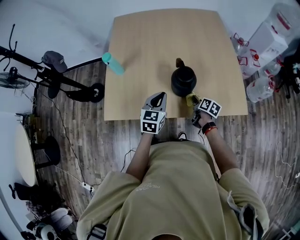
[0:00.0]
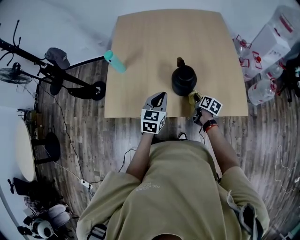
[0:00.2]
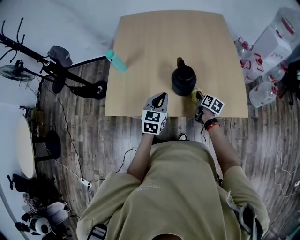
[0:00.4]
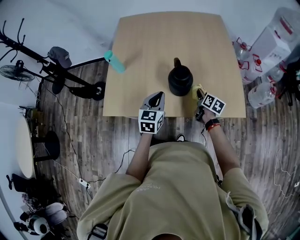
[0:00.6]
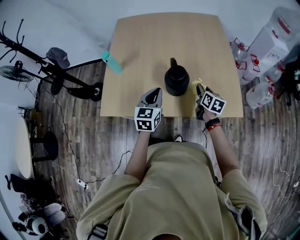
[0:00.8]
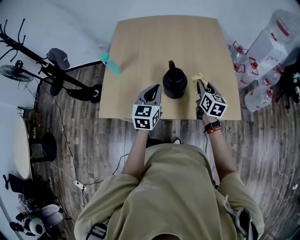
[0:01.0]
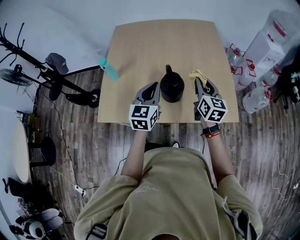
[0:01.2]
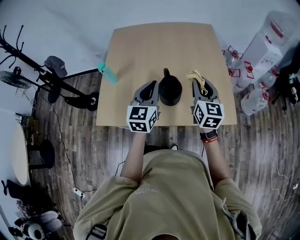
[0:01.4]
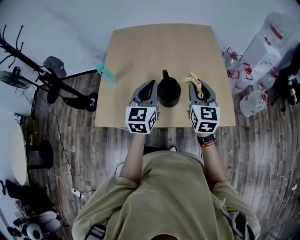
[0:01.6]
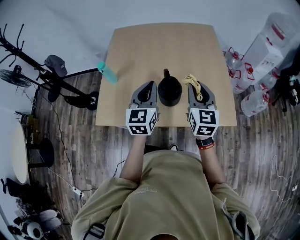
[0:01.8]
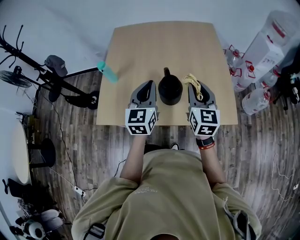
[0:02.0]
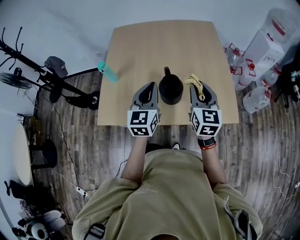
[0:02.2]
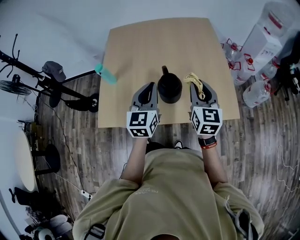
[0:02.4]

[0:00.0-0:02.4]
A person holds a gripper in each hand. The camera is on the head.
0:00.0 to 0:01.2: The left gripper goes roughly 10 cm upward; the right gripper moves upward, about 25 cm, and swivels roughly 50 degrees.
0:01.2 to 0:02.4: The right gripper ends up approximately 5 cm from where it was.

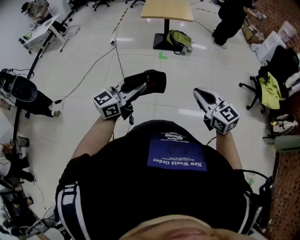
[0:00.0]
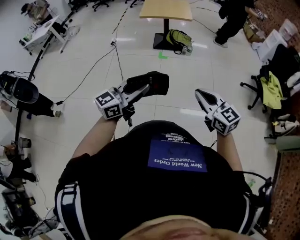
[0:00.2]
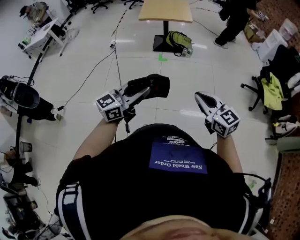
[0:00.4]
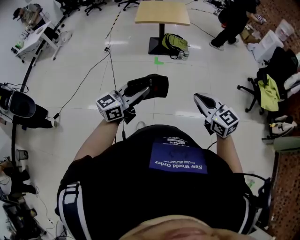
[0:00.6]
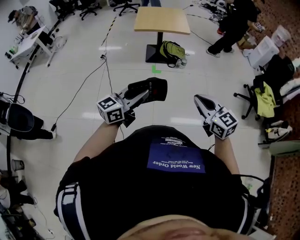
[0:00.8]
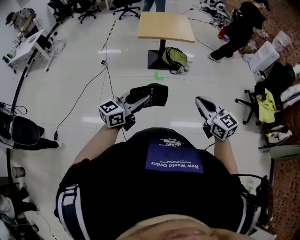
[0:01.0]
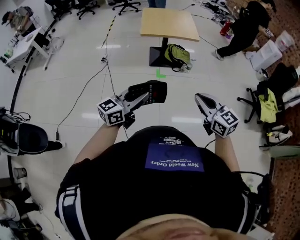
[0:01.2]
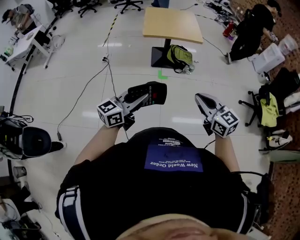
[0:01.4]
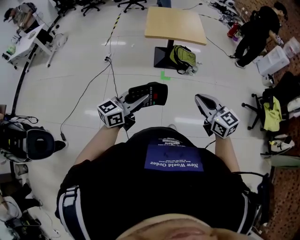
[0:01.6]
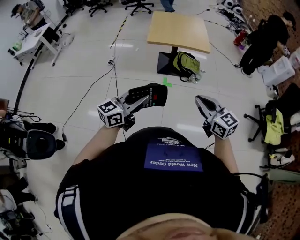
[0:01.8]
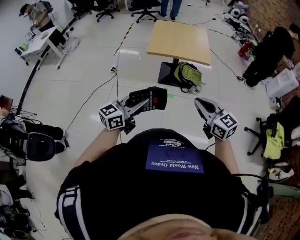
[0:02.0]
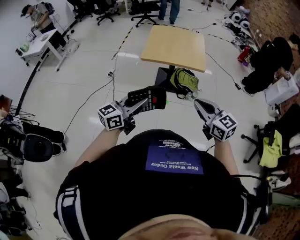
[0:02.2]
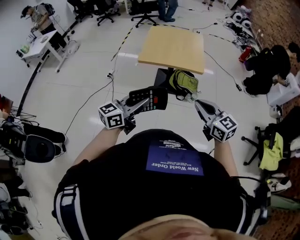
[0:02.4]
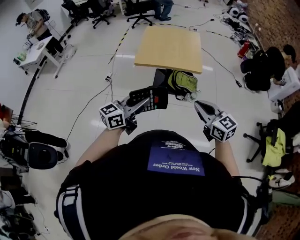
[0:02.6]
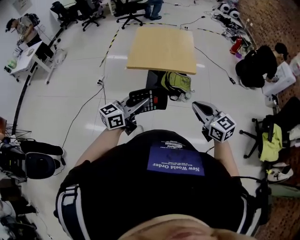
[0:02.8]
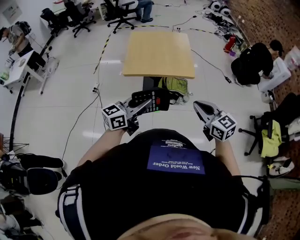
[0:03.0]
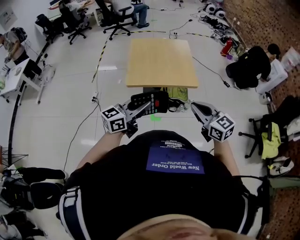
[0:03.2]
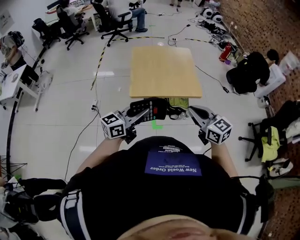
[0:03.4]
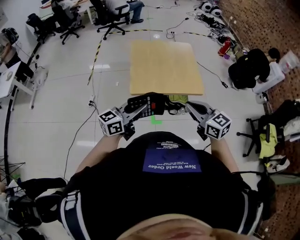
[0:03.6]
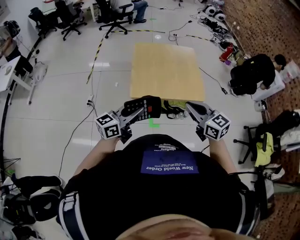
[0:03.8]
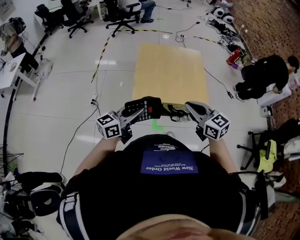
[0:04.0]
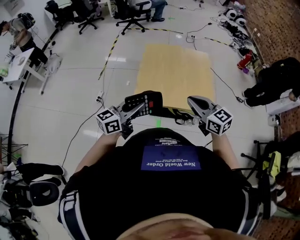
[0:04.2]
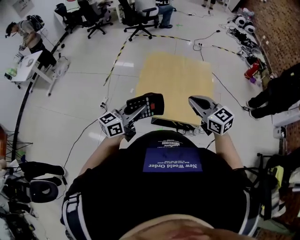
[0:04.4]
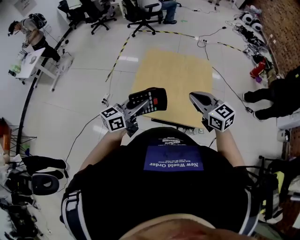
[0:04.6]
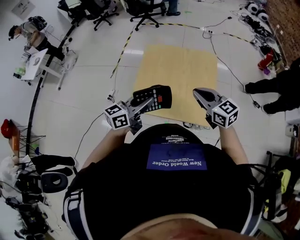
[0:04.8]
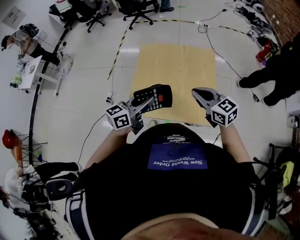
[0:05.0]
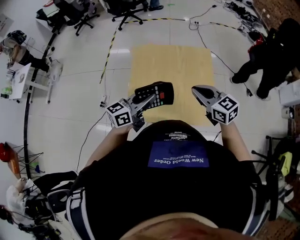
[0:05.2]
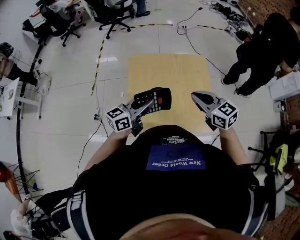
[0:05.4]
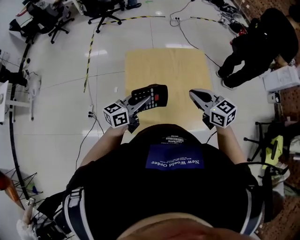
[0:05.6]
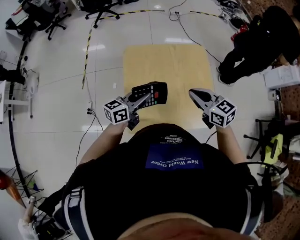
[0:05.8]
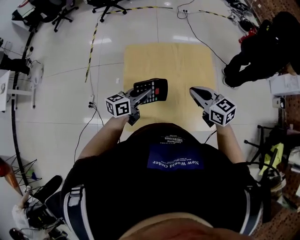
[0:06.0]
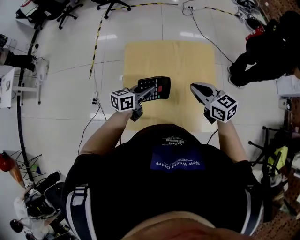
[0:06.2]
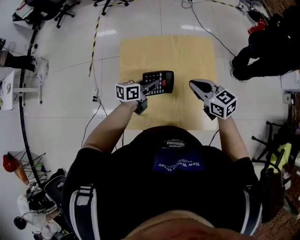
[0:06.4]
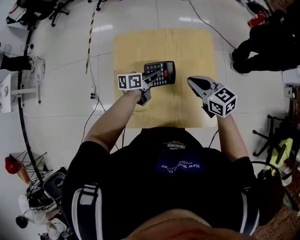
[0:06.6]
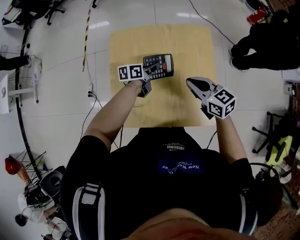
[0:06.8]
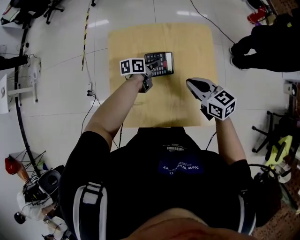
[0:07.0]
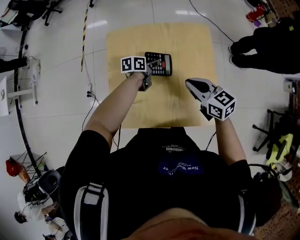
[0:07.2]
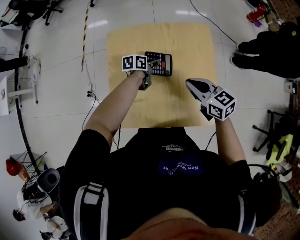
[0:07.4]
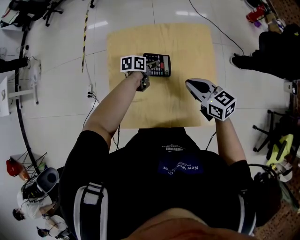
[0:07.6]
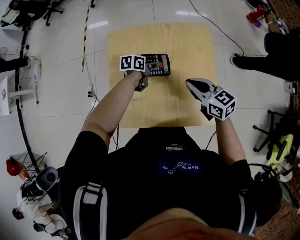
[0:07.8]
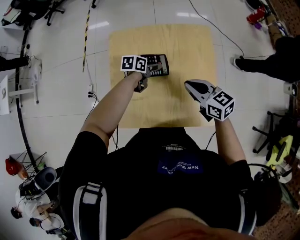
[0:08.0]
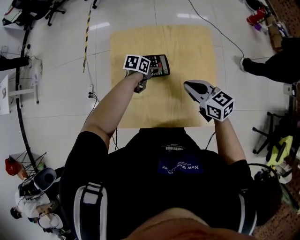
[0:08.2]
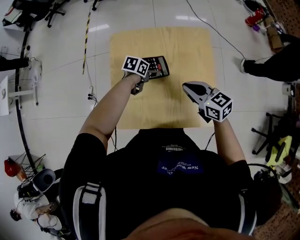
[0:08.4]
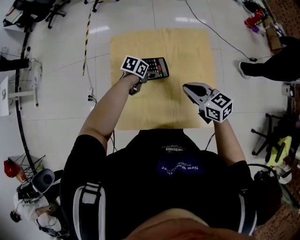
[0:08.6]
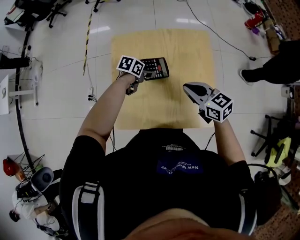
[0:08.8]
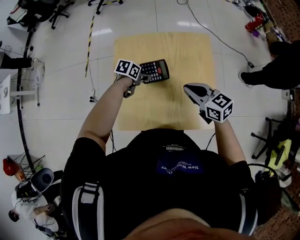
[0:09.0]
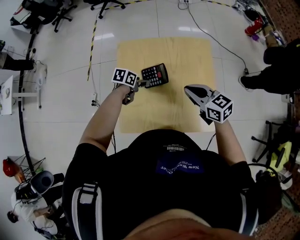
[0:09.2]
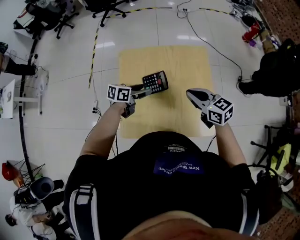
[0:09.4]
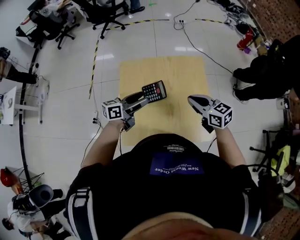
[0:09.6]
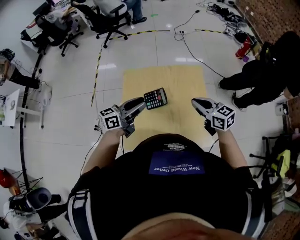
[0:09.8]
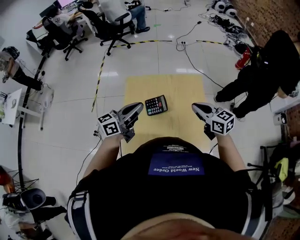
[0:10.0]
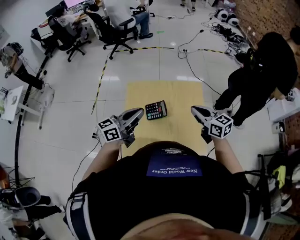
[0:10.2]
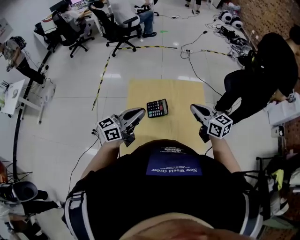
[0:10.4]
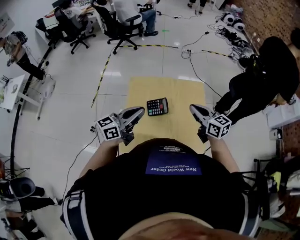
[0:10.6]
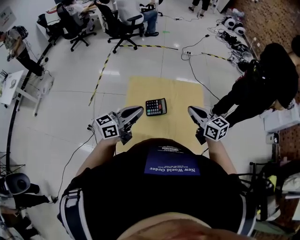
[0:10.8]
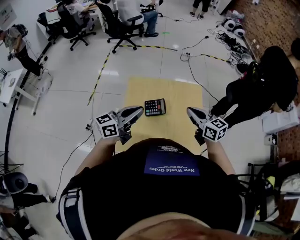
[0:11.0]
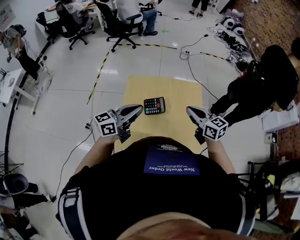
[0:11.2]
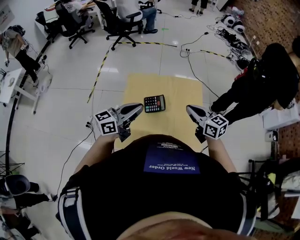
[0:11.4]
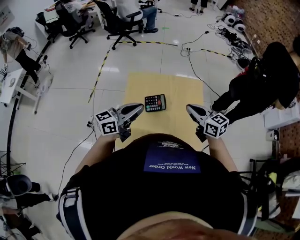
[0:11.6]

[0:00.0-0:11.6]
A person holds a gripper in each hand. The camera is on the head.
0:00.0 to 0:01.4: The two grippers travel together, forward and to the left, about 40 cm.
0:01.4 to 0:02.8: Both grippers move forward and to the right, approximately 35 cm.
0:02.8 to 0:04.4: Both grippers are carried forward, approximately 40 cm.
0:04.4 to 0:05.8: Both grippers travel together forward and downward, about 25 cm. The left gripper changes its angle by approximately 20 degrees.
0:05.8 to 0:07.2: The right gripper shifts roughly 15 cm downward, to the right and forward. Meanwhile the left gripper moves downward, forward and to the right, approximately 30 cm, and angles its fingers downward, by about 30 degrees.
0:07.2 to 0:08.8: The left gripper shifts by approximately 5 cm, swivels roughly 30 degrees, and opens its fingers.
0:08.8 to 0:10.2: The right gripper shifts approximately 10 cm upward. Meanwhile the left gripper moves upward, some 30 cm, points its fingers some 60 degrees further upward, and closes up.
0:10.2 to 0:11.6: The grippers stay close to where they were, moving slightly.

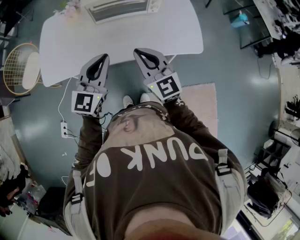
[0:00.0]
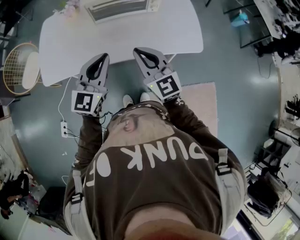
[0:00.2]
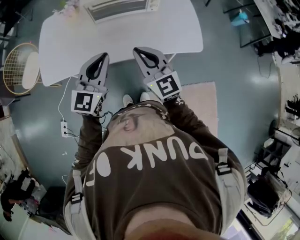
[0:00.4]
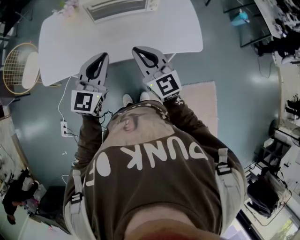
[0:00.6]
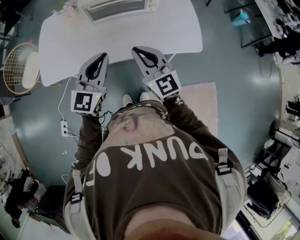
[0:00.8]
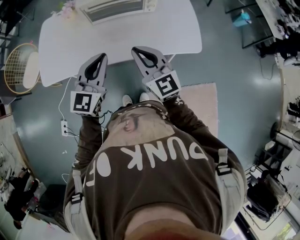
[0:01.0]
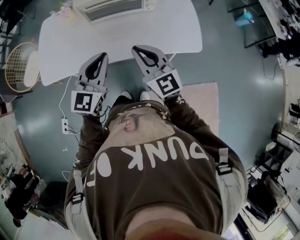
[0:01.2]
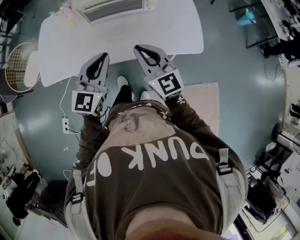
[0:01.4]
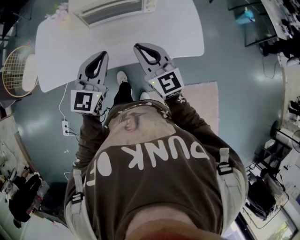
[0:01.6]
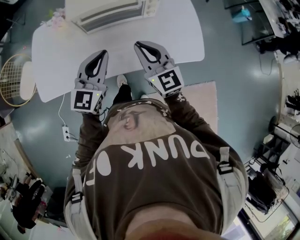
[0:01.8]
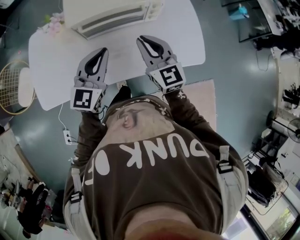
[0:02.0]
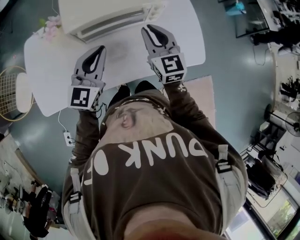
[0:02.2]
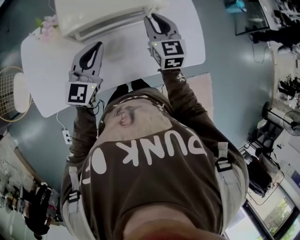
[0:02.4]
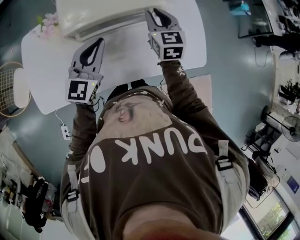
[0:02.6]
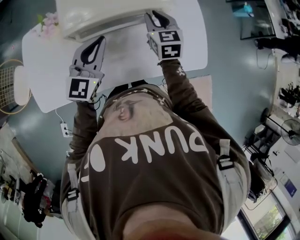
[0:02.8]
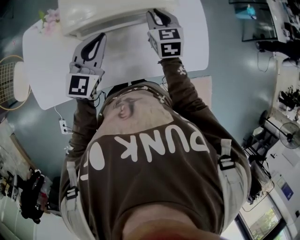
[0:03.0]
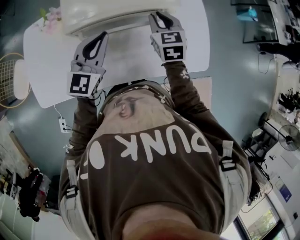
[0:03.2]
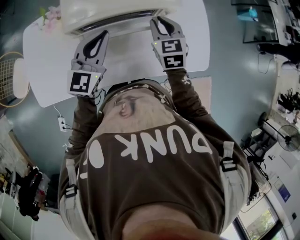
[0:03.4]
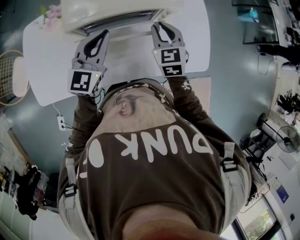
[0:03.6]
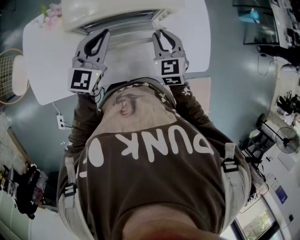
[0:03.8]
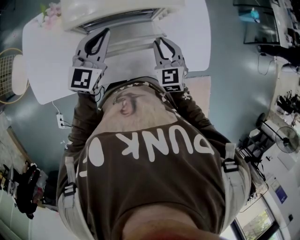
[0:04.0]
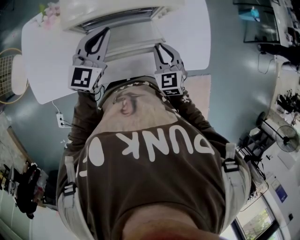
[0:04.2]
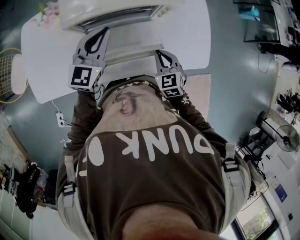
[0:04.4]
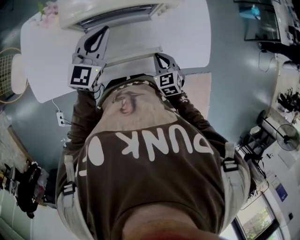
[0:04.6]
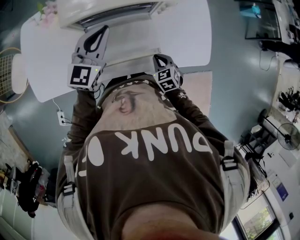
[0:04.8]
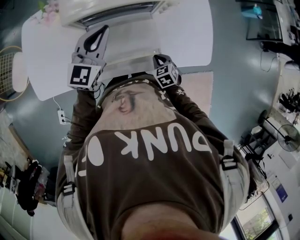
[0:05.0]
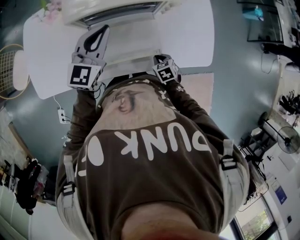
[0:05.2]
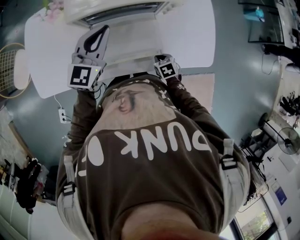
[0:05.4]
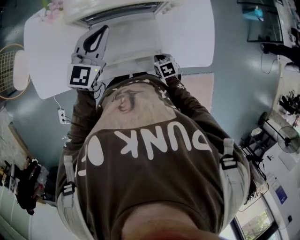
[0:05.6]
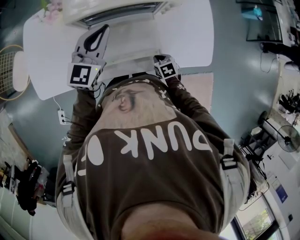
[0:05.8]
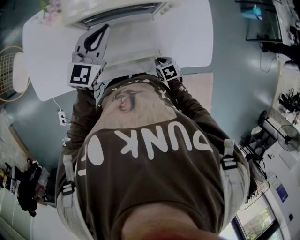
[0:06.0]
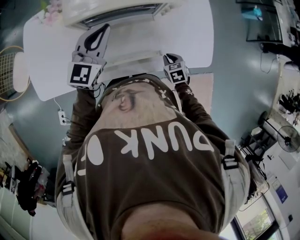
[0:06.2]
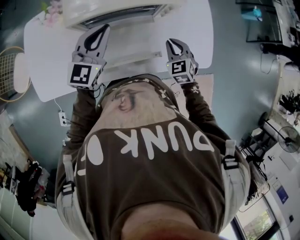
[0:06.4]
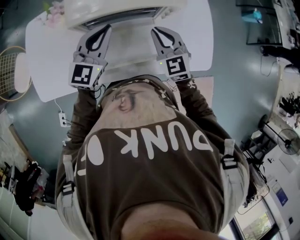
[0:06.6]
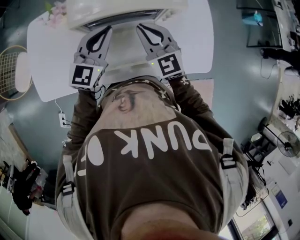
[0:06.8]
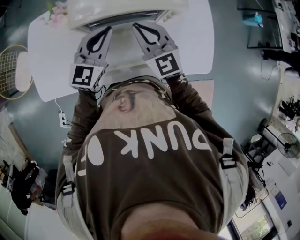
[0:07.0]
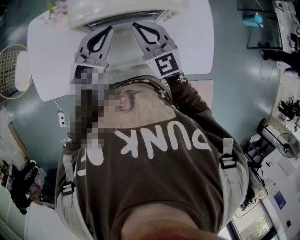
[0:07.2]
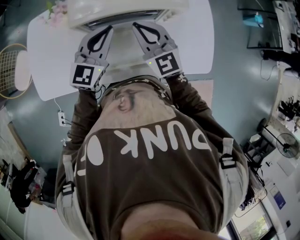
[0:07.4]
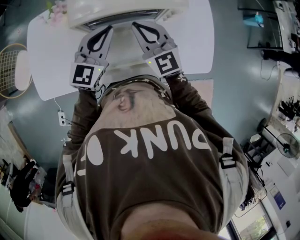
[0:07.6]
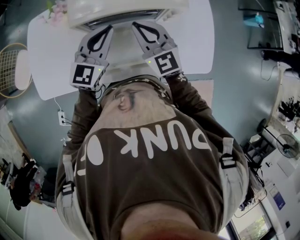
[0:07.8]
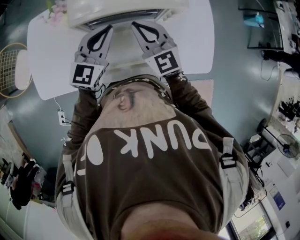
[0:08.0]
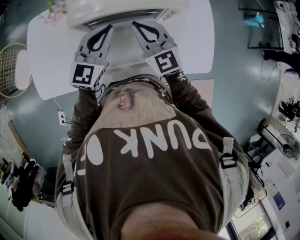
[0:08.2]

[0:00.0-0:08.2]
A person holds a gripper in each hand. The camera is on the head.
0:00.0 to 0:01.6: Both grippers travel together forward, approximately 5 cm.
0:01.6 to 0:03.2: Both grippers move forward, roughly 25 cm. The right gripper tips its fingers downward by roughly 30 degrees.
0:03.2 to 0:05.0: The right gripper shifts some 30 cm downward and backward, and turns by approximately 30 degrees.
0:05.0 to 0:06.6: The right gripper shifts about 25 cm upward and forward, and tips its fingers upward by roughly 40 degrees.
0:06.6 to 0:08.2: The right gripper is displaced to the left and upward by about 10 cm.

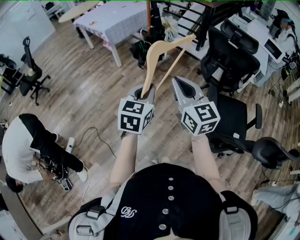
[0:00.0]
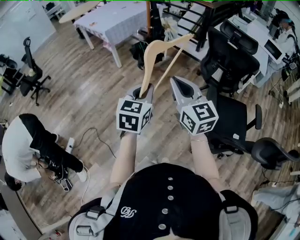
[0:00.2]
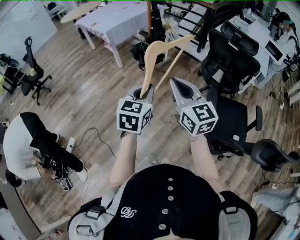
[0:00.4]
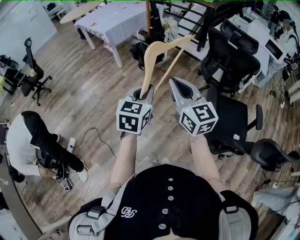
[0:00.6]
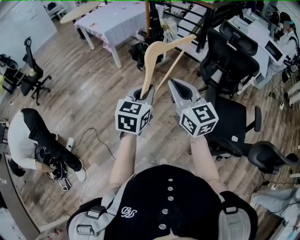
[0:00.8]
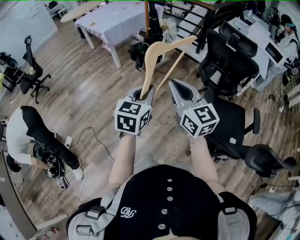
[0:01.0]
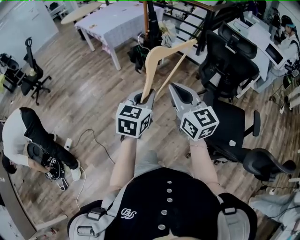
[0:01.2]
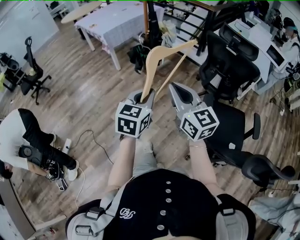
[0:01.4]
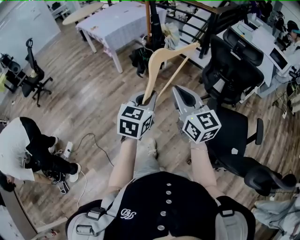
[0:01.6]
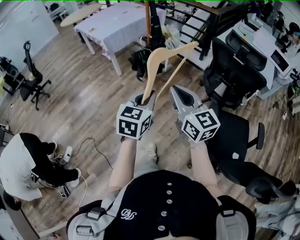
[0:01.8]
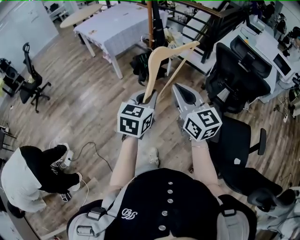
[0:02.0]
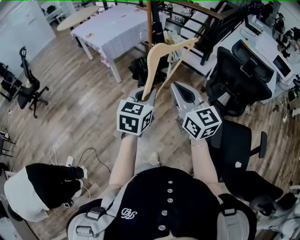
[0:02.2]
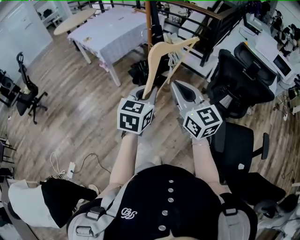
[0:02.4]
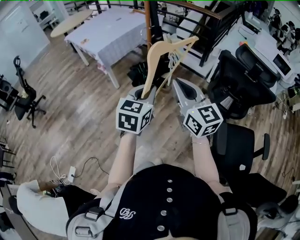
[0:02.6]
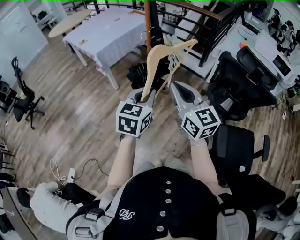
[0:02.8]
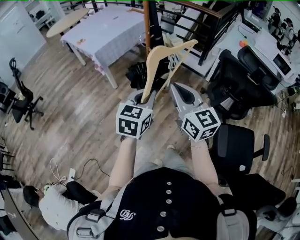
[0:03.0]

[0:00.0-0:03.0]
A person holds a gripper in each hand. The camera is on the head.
0:00.0 to 0:01.6: The right gripper heads forward, covering approximately 5 cm; the left gripper travels forward and to the right by about 10 cm.
0:01.6 to 0:03.0: Both grippers travel together forward, roughly 25 cm.
